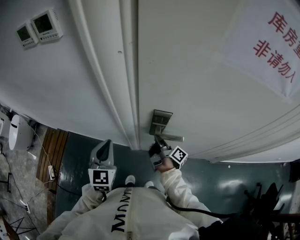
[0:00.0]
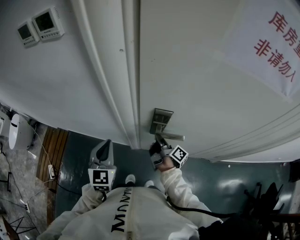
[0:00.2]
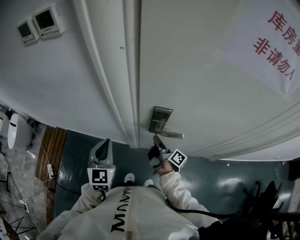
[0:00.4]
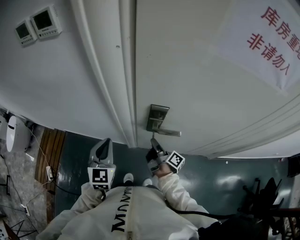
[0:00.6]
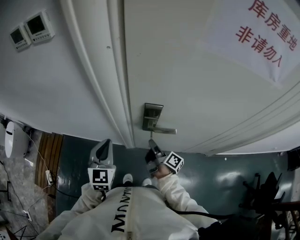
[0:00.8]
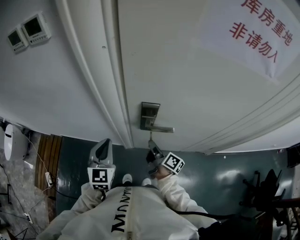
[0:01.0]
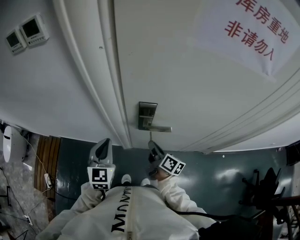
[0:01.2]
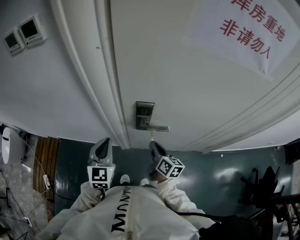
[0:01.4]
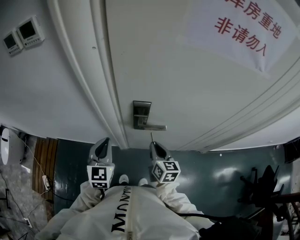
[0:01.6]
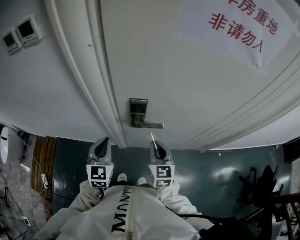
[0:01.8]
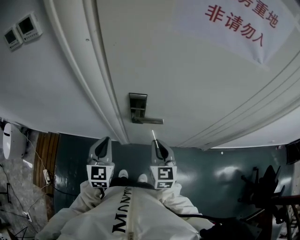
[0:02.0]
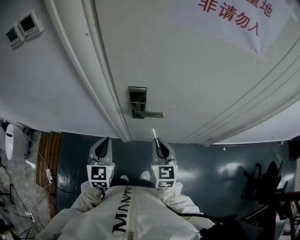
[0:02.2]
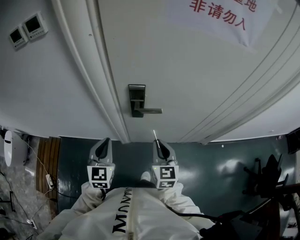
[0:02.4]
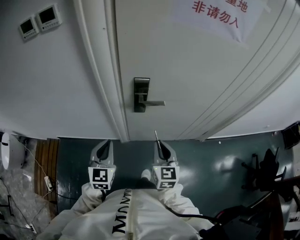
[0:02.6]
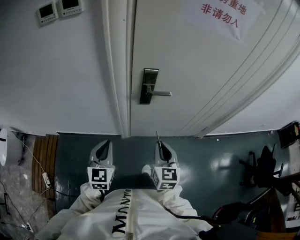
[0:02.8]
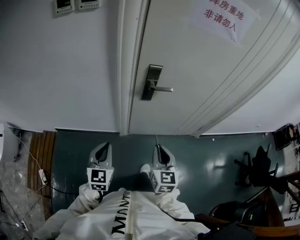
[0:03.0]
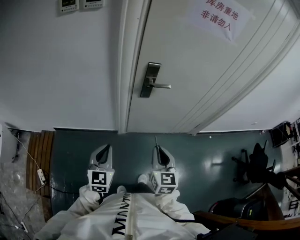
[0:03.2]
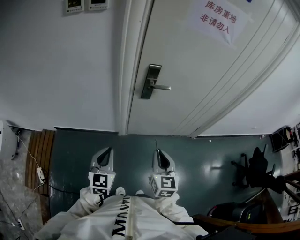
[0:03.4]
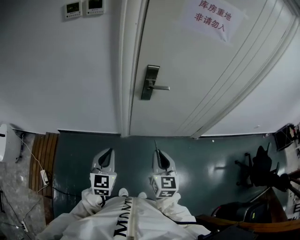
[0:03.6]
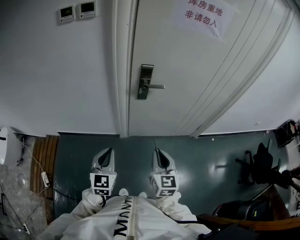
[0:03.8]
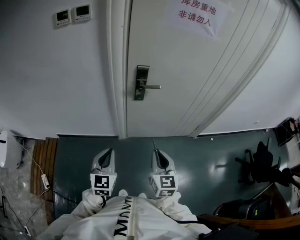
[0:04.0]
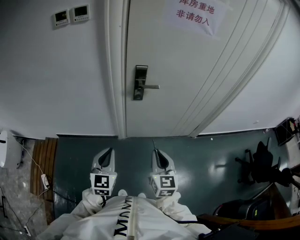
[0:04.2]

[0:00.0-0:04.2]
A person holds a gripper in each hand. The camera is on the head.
0:00.0 to 0:01.4: The right gripper heads backward, covering about 10 cm, and rolls counterclockwise, seen from behind, by some 50 degrees.
0:01.4 to 0:02.8: Both grippers travel together backward, about 20 cm. The right gripper changes its angle by approximately 40 degrees.
0:02.8 to 0:04.2: The grippers both shift backward by roughly 15 cm.

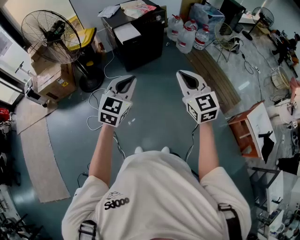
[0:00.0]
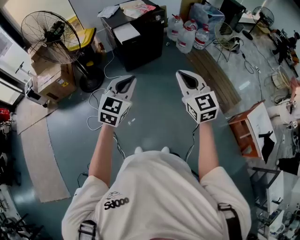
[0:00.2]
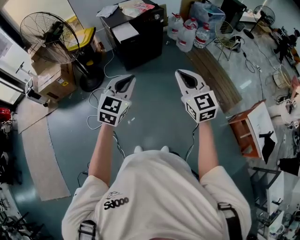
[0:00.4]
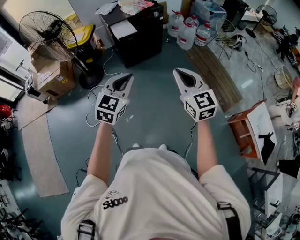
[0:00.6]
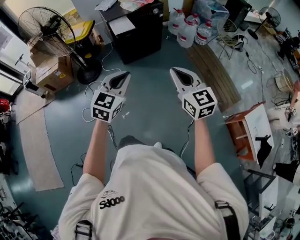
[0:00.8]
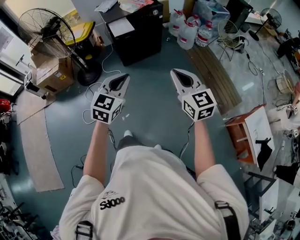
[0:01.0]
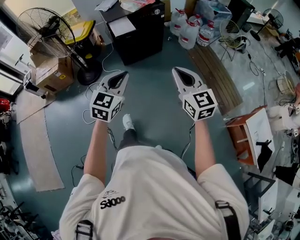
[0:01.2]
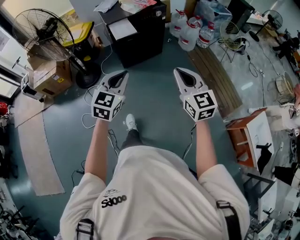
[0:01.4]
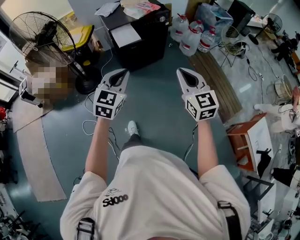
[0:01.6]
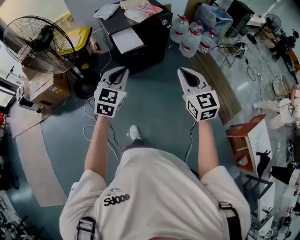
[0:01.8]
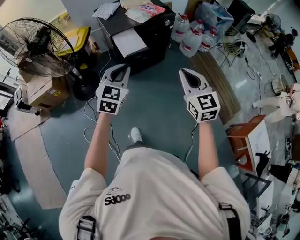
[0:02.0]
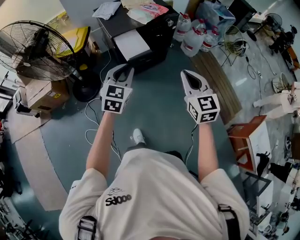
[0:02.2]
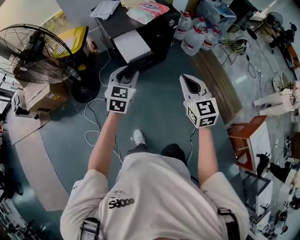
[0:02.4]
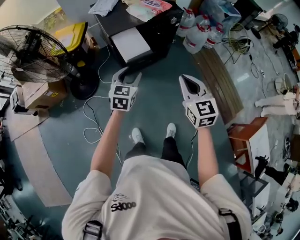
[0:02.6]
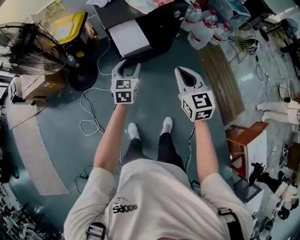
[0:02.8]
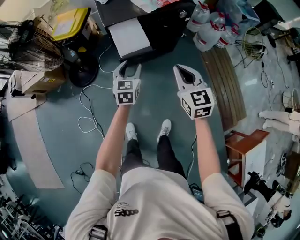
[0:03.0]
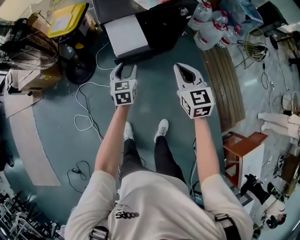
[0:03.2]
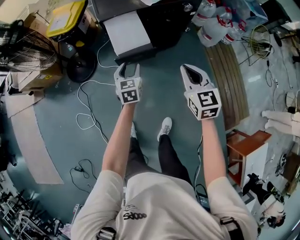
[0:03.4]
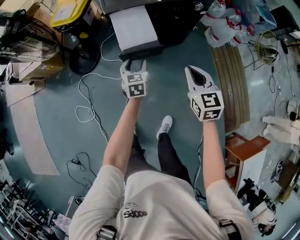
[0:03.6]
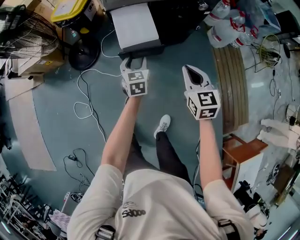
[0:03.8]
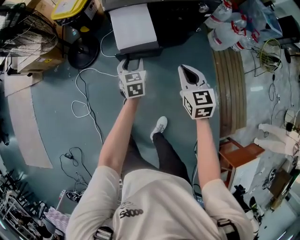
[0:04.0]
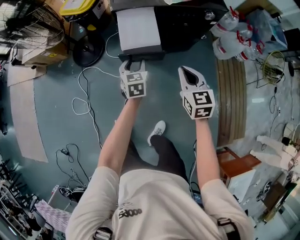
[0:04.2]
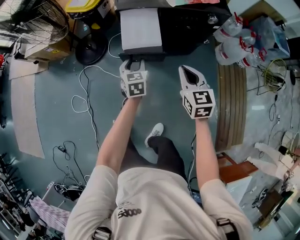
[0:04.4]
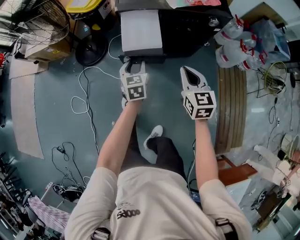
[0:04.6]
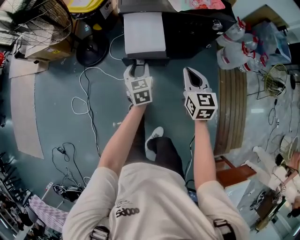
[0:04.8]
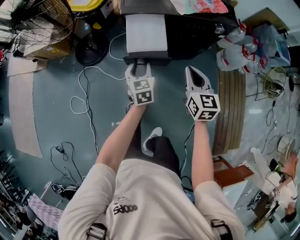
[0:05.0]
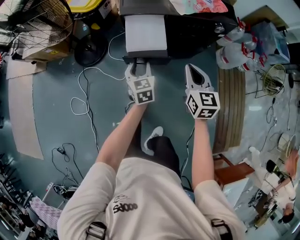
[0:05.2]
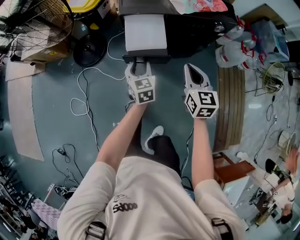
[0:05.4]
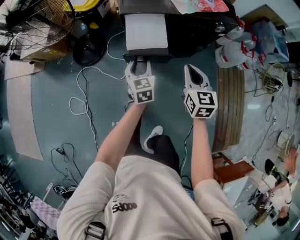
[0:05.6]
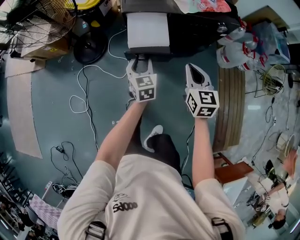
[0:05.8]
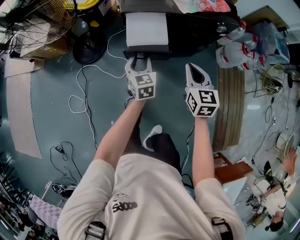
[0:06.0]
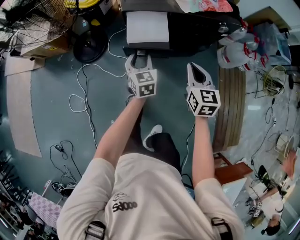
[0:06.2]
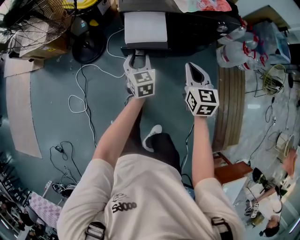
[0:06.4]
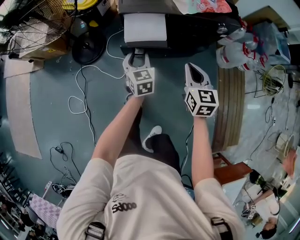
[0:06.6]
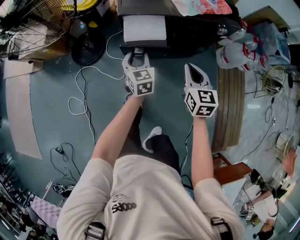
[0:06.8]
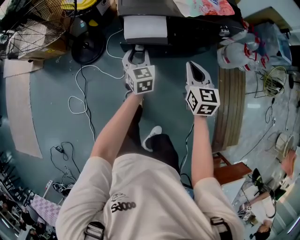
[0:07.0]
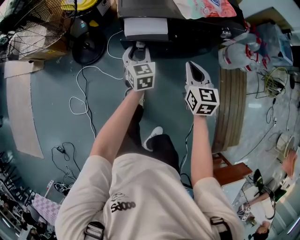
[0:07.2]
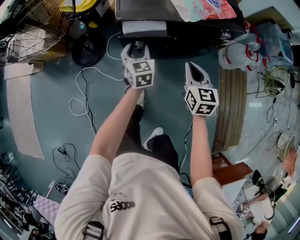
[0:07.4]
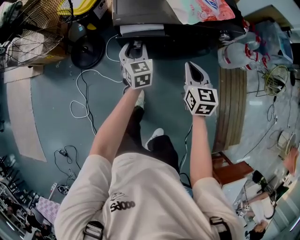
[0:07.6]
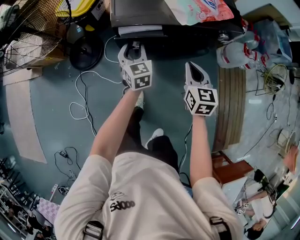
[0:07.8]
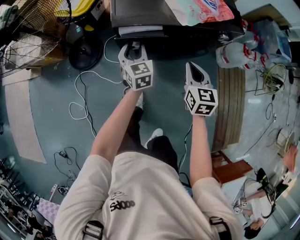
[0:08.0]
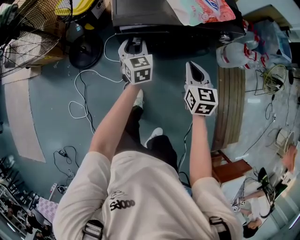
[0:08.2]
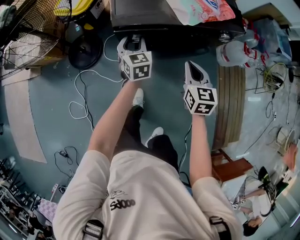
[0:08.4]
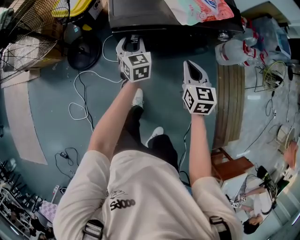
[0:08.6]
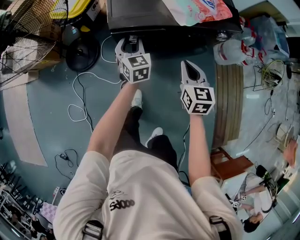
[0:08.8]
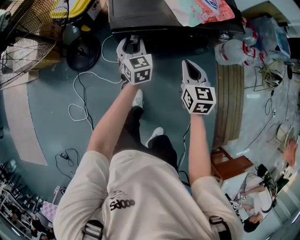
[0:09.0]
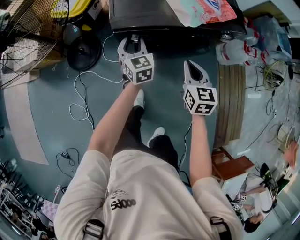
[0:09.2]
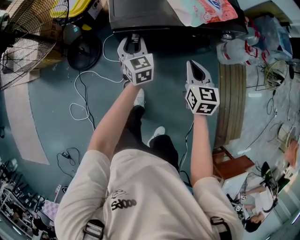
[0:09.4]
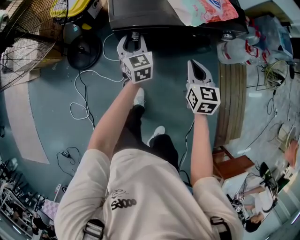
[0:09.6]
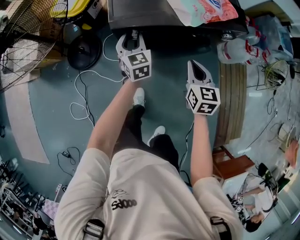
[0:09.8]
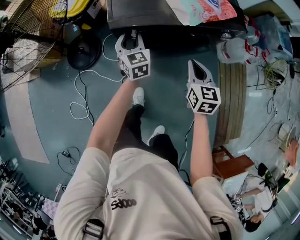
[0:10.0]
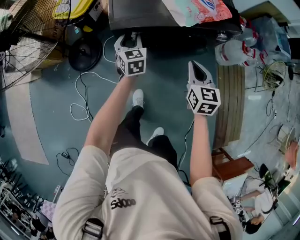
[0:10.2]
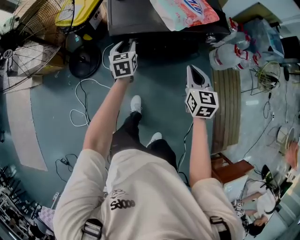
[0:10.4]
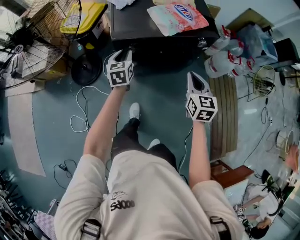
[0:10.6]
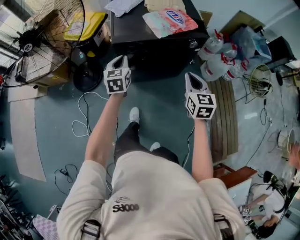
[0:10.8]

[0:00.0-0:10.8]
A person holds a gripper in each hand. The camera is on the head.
0:00.0 to 0:01.6: The two grippers go approximately 20 cm forward.
0:01.6 to 0:03.0: The right gripper goes roughly 35 cm forward. The left gripper heads forward and downward, covering about 40 cm, turns by roughly 30 degrees, and opens up.
0:03.0 to 0:04.6: Both grippers move downward and forward, about 15 cm. The left gripper changes its angle by about 30 degrees.
0:04.6 to 0:06.2: The grippers both shift forward by roughly 5 cm.
0:06.2 to 0:07.8: The grippers both shift forward by about 10 cm.
0:07.8 to 0:09.2: The grippers stay close to where they were, moving slightly.
0:09.2 to 0:10.8: The two grippers go about 20 cm backward and upward. The left gripper closes.

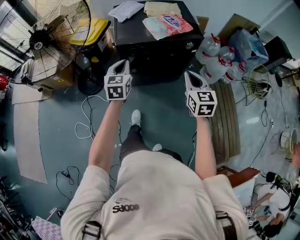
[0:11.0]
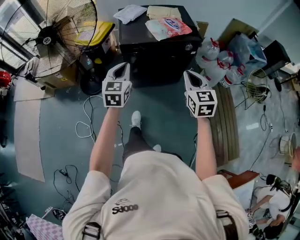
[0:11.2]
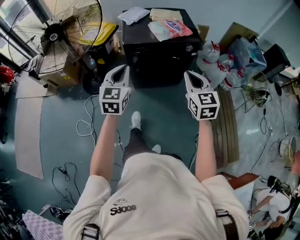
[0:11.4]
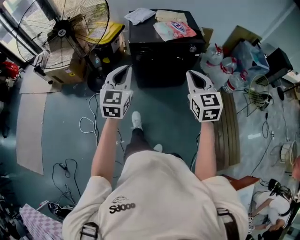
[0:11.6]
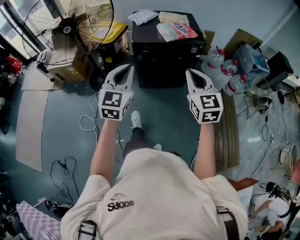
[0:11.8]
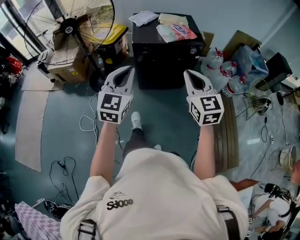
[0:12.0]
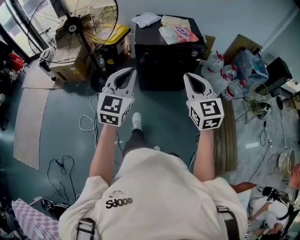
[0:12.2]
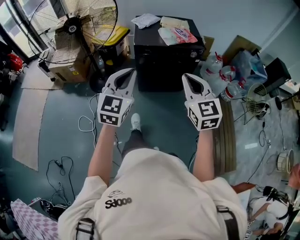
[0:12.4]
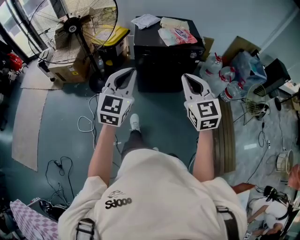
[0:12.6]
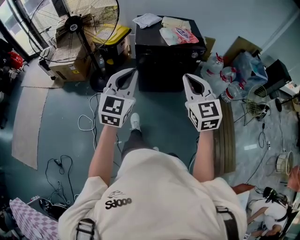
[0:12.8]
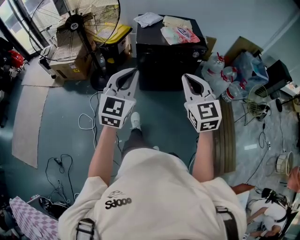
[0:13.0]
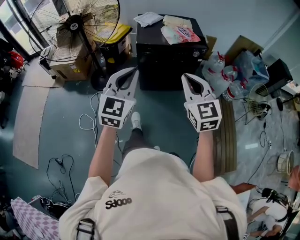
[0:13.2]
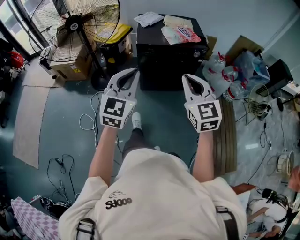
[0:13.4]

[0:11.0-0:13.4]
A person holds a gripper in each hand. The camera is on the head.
0:11.0 to 0:12.2: Both grippers move backward and upward, about 30 cm. The right gripper changes its angle by roughly 20 degrees. Meanwhile the left gripper turns by roughly 20 degrees.
0:12.2 to 0:13.4: The grippers move only a little.

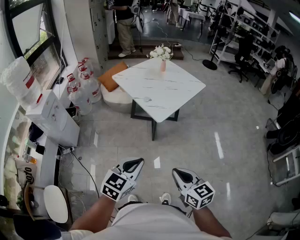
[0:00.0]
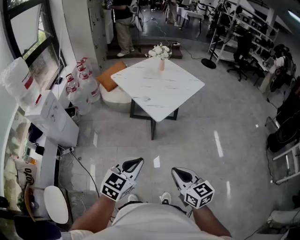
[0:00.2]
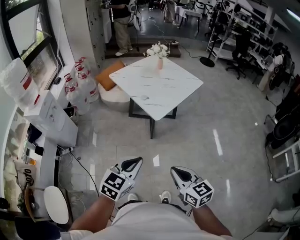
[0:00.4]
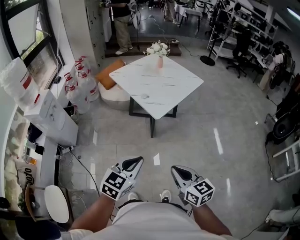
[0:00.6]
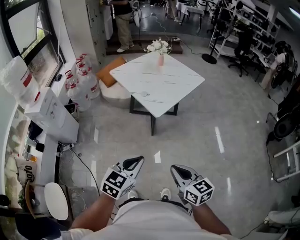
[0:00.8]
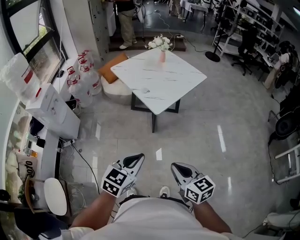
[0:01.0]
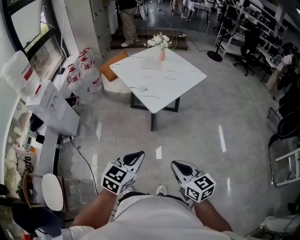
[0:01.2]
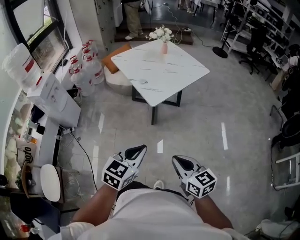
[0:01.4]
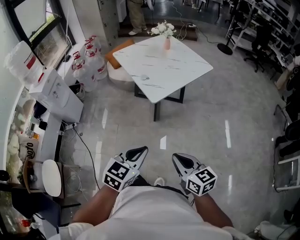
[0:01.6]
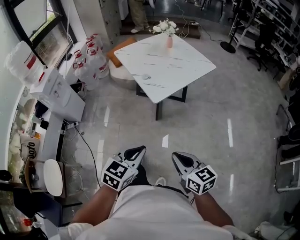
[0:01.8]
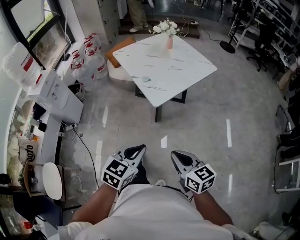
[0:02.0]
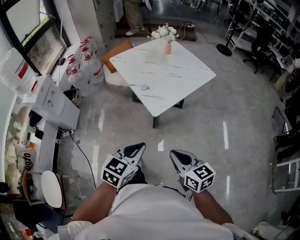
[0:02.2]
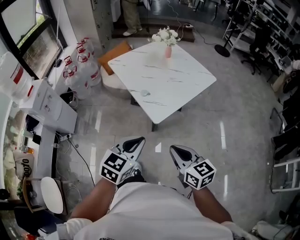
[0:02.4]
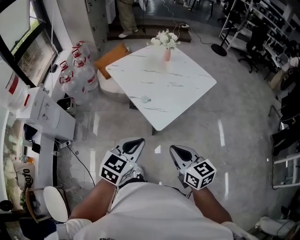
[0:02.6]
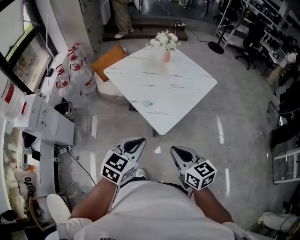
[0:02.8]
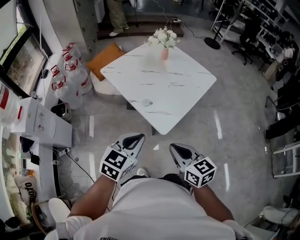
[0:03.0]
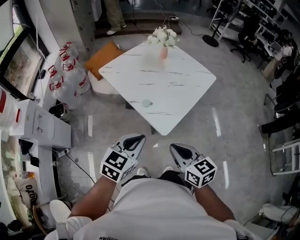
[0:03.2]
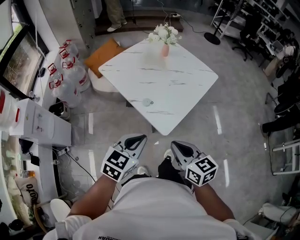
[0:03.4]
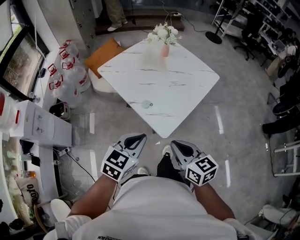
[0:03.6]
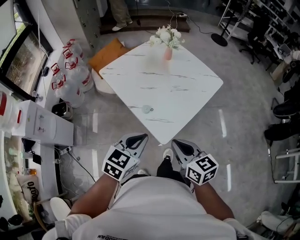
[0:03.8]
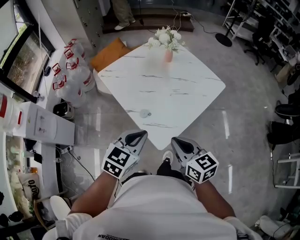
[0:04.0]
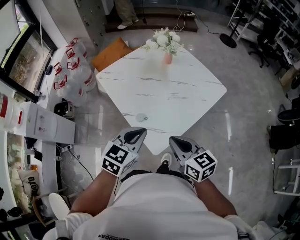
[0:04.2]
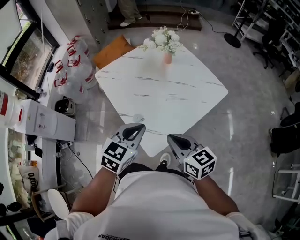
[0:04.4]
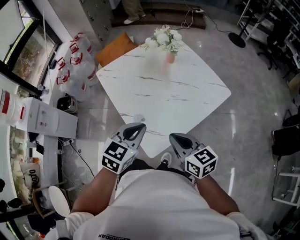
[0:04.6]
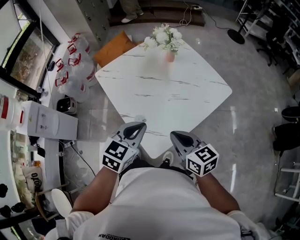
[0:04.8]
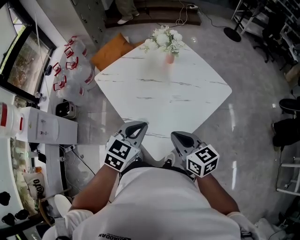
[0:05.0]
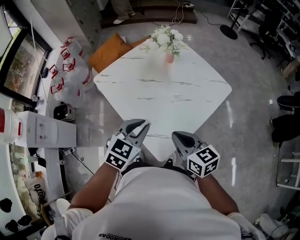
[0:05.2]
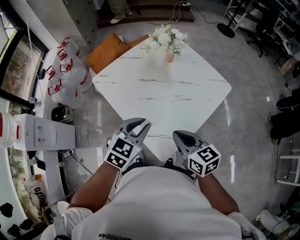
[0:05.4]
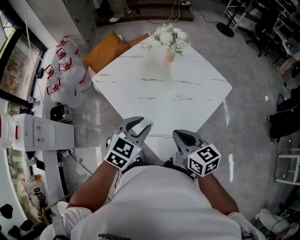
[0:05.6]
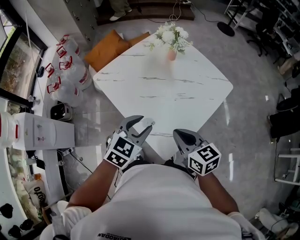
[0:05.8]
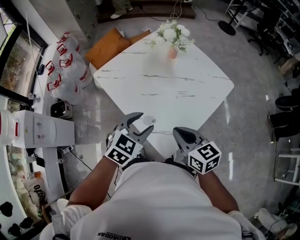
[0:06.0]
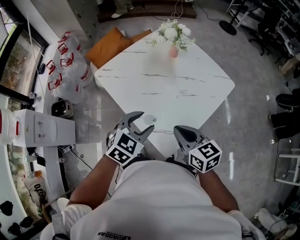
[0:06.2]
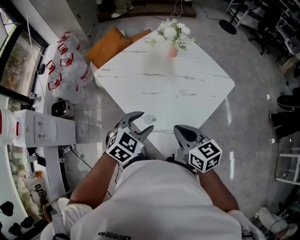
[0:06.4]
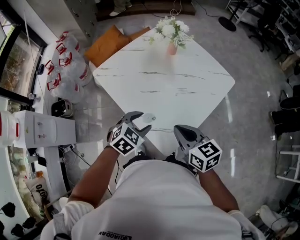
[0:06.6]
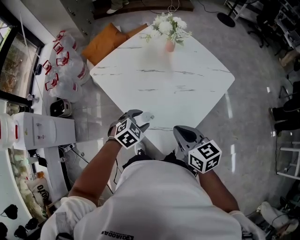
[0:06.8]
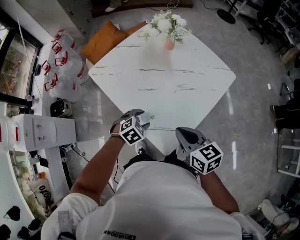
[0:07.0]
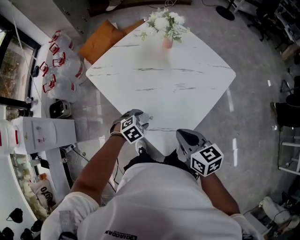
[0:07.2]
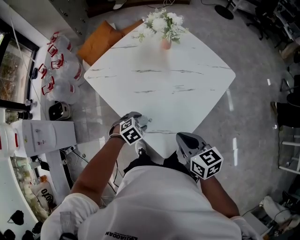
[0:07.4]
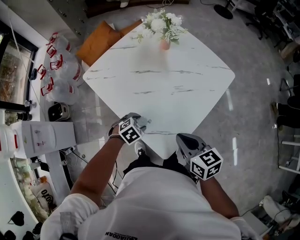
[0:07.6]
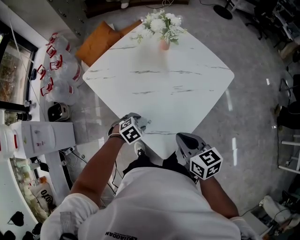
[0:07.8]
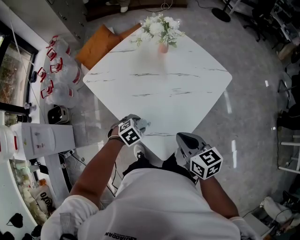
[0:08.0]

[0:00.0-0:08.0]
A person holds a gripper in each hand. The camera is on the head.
0:00.0 to 0:01.6: The two grippers go some 10 cm to the right.
0:01.6 to 0:03.2: The two grippers go roughly 35 cm forward and to the left.
0:03.2 to 0:04.8: The two grippers go approximately 25 cm forward and to the right.
0:04.8 to 0:06.4: The right gripper goes some 5 cm to the left; the left gripper is displaced to the left and downward by some 10 cm, changes its angle by about 20 degrees, and opens its fingers.
0:06.4 to 0:08.0: The right gripper ends up approximately 5 cm from where it was. The left gripper is displaced downward by approximately 20 cm, and turns by roughly 30 degrees.
